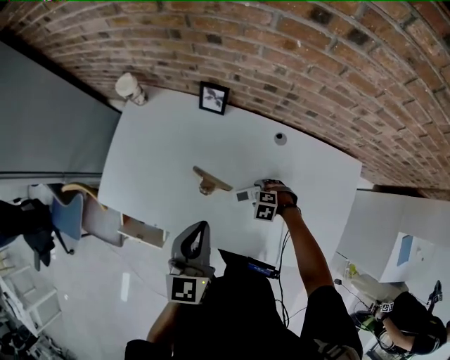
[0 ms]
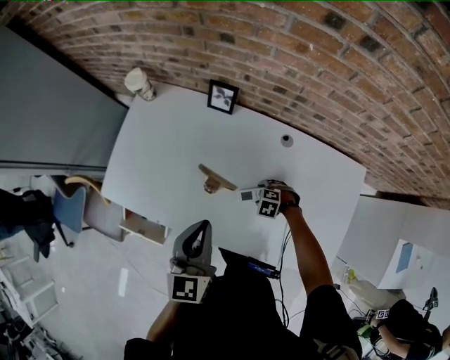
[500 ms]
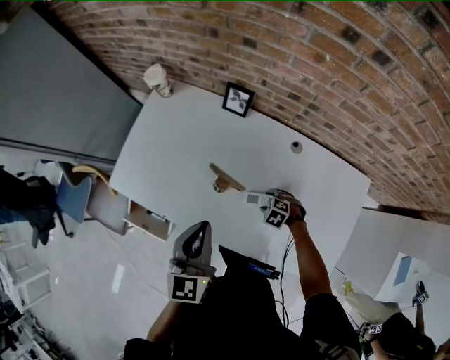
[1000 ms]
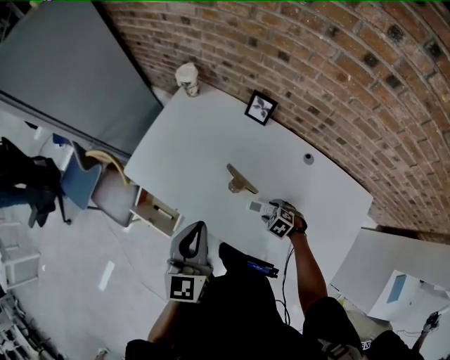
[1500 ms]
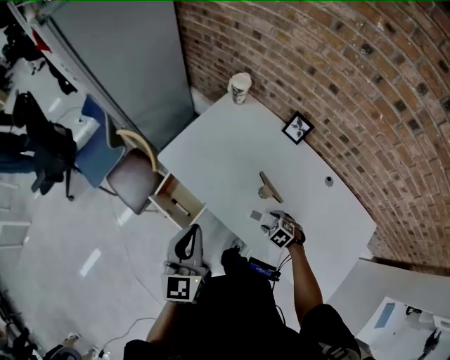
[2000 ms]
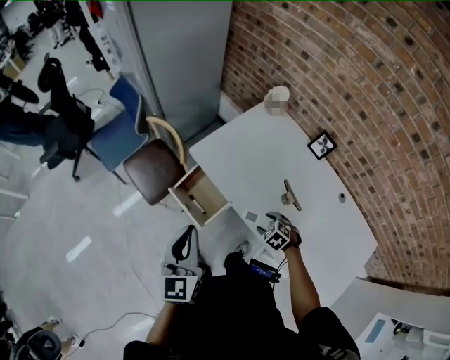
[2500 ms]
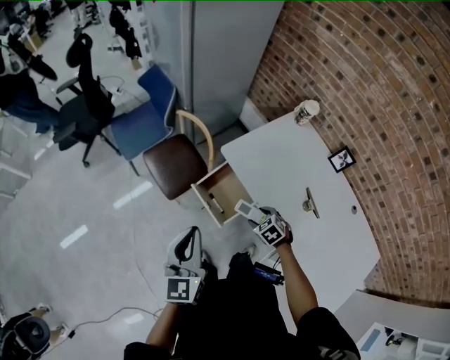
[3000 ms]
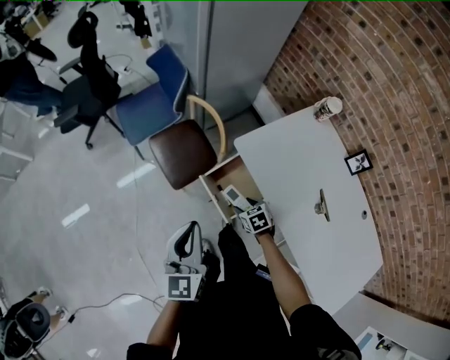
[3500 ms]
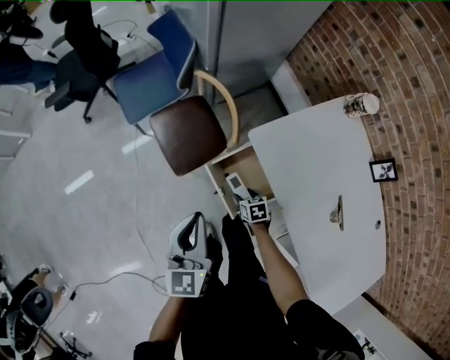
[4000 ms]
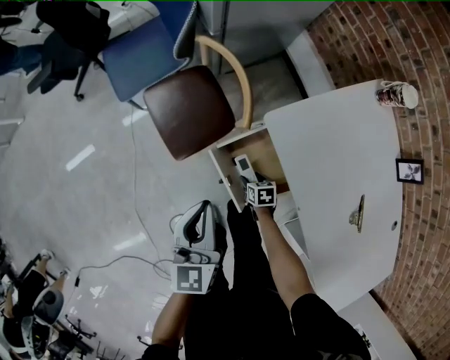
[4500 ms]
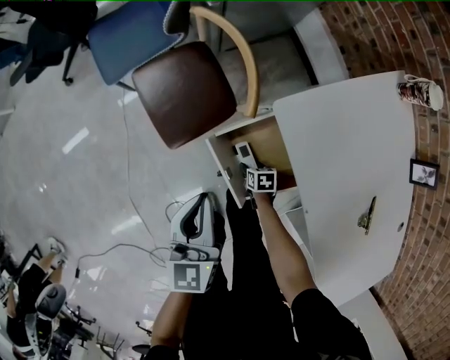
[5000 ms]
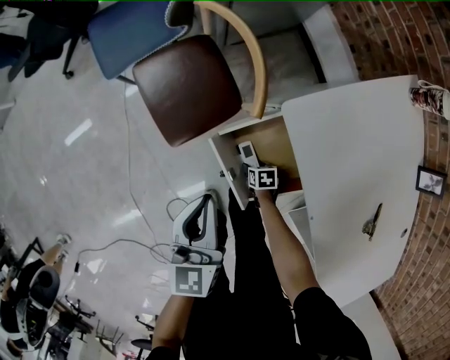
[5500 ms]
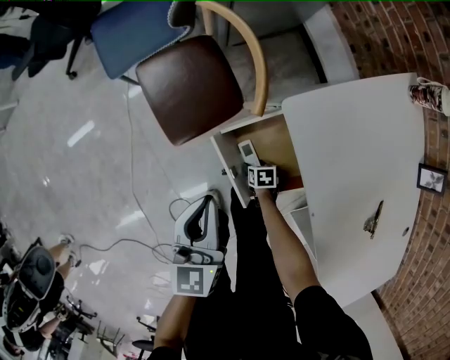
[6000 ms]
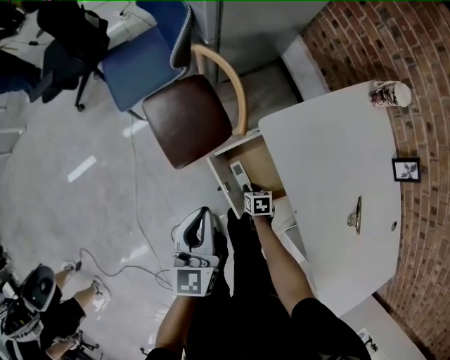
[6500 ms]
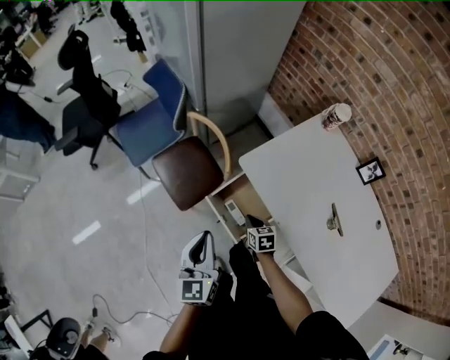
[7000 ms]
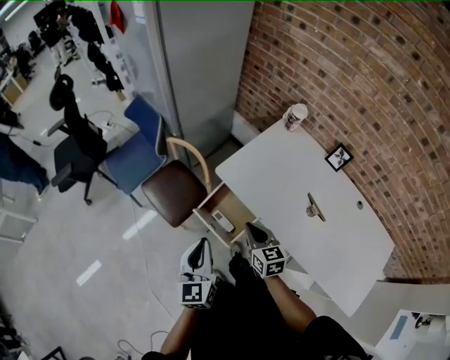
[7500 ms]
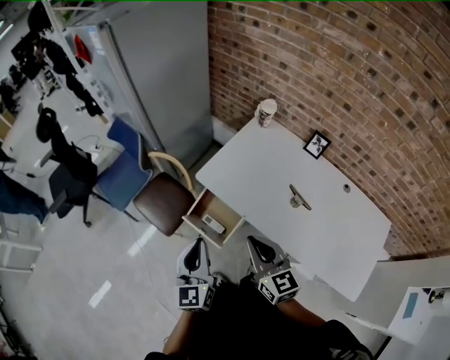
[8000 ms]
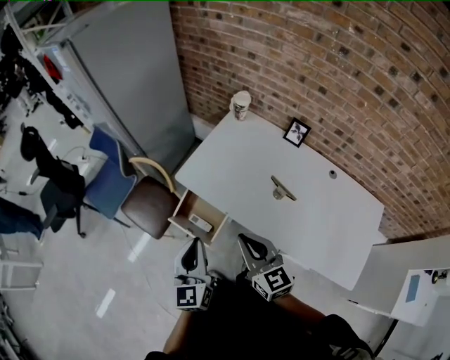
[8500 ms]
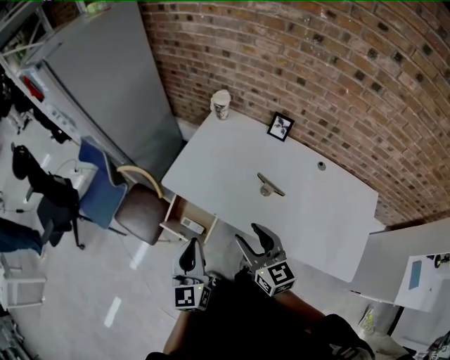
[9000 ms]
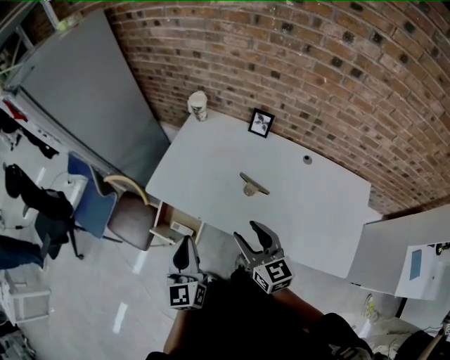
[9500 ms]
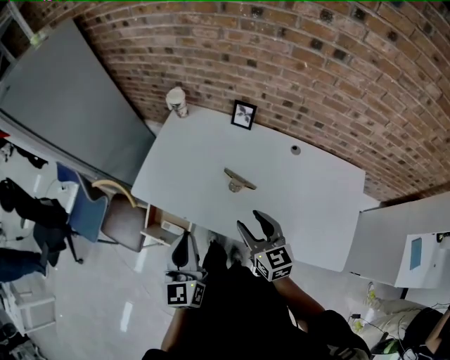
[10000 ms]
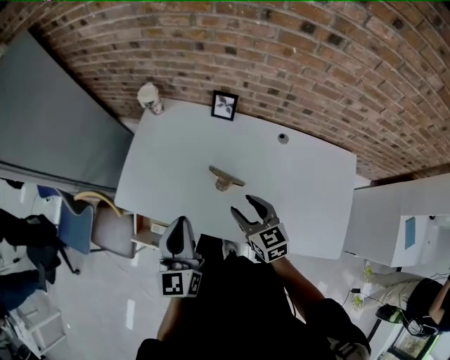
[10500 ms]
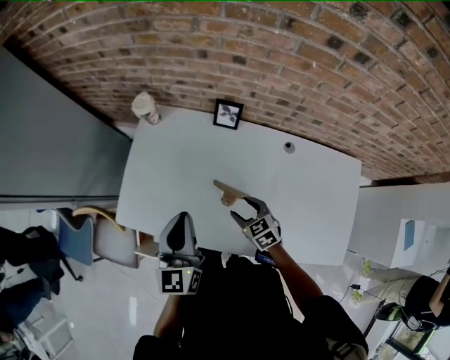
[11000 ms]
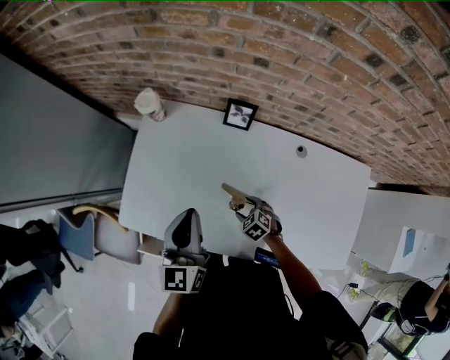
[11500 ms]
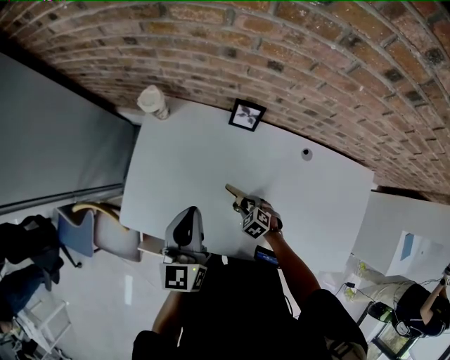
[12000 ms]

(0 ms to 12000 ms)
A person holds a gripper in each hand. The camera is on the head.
0 ms - 2000 ms: The left gripper moves approximately 25 cm, and changes its angle by some 30 degrees; the right gripper moves approximately 15 cm.
2000 ms - 4000 ms: The grippers both shift to the left, forward and downward by approximately 40 cm. The right gripper swivels some 20 degrees. Meanwhile the left gripper changes its angle by approximately 30 degrees.
4000 ms - 6000 ms: The grippers both shift downward by about 20 cm.
6000 ms - 8000 ms: The right gripper heads upward, covering some 70 cm, points its fingers about 60 degrees further upward, and closes. Meanwhile the left gripper heads upward, covering some 30 cm, and turns by approximately 30 degrees.
8000 ms - 10000 ms: The grippers both shift to the right by roughly 25 cm. The right gripper opens up.
10000 ms - 12000 ms: The left gripper goes some 30 cm forward, while the right gripper is displaced downward and forward by some 35 cm, and angles its fingers downward, by about 50 degrees.

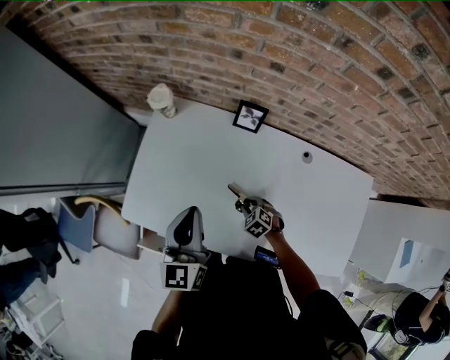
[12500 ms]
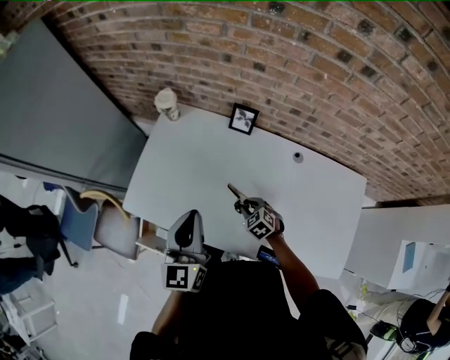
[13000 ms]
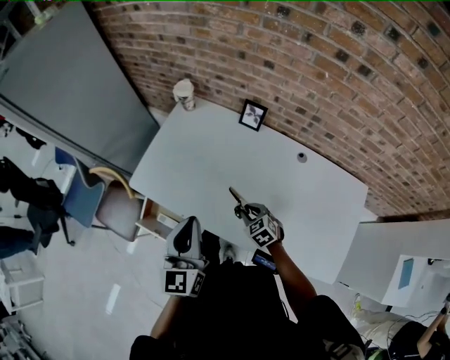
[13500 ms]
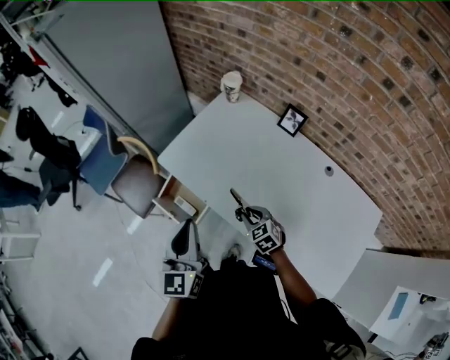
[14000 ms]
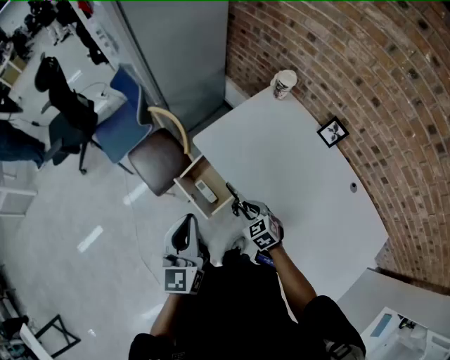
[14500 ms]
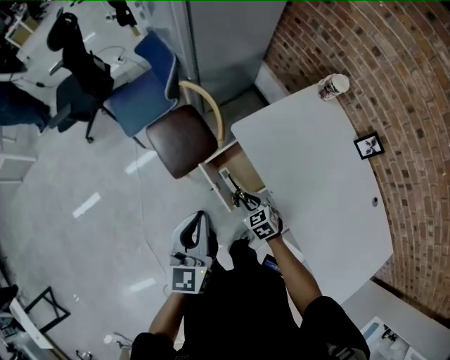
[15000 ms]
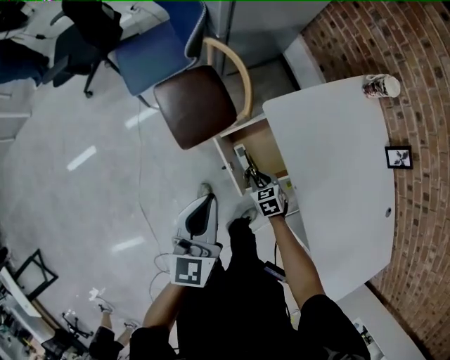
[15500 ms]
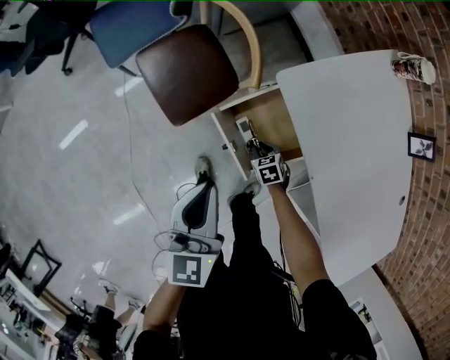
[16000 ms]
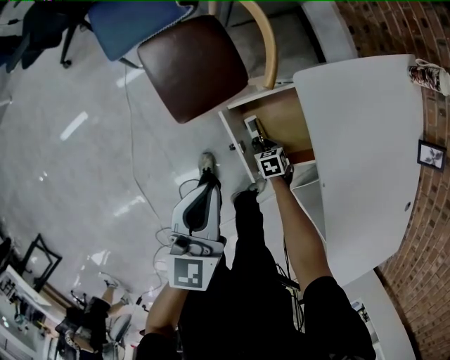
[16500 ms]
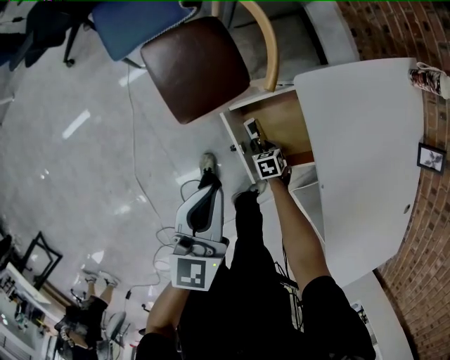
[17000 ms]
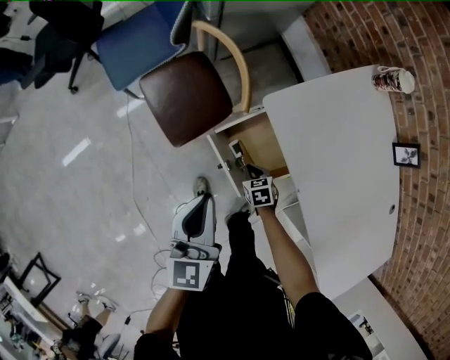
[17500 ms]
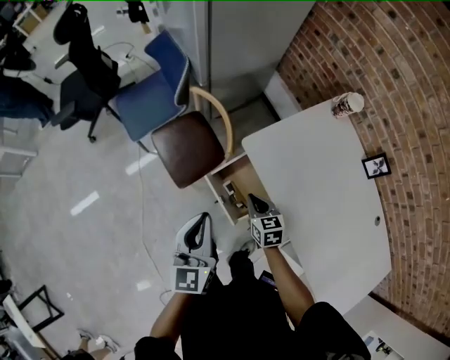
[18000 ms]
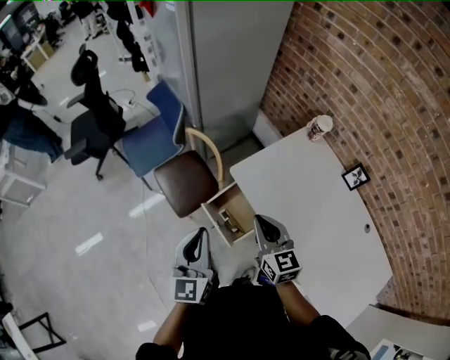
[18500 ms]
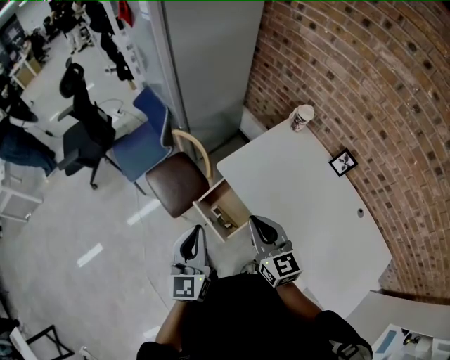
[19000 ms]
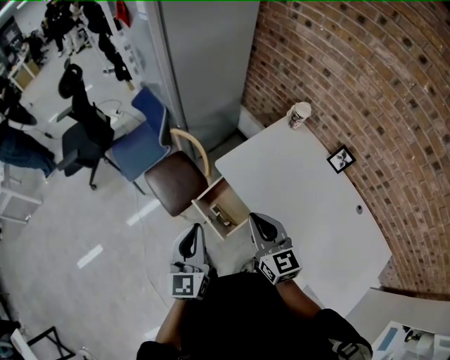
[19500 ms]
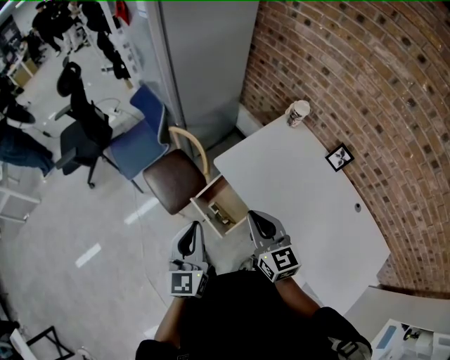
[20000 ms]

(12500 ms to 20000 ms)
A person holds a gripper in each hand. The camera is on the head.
12500 ms - 14500 ms: The right gripper moves roughly 30 cm, and changes its angle by some 30 degrees. The left gripper moves approximately 35 cm, and changes its angle by roughly 30 degrees.
14500 ms - 16500 ms: The left gripper moves downward, some 25 cm, while the right gripper travels downward by approximately 40 cm, and turns by about 30 degrees.
16500 ms - 18000 ms: The left gripper shifts approximately 15 cm upward; the right gripper moves upward, about 35 cm, and angles its fingers upward, by about 40 degrees.
18000 ms - 20000 ms: The left gripper goes about 10 cm upward and backward, while the right gripper is displaced upward by roughly 25 cm, and changes its angle by roughly 30 degrees.

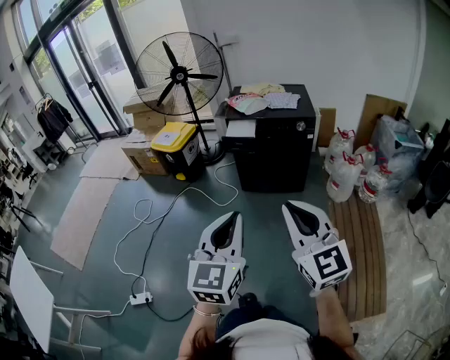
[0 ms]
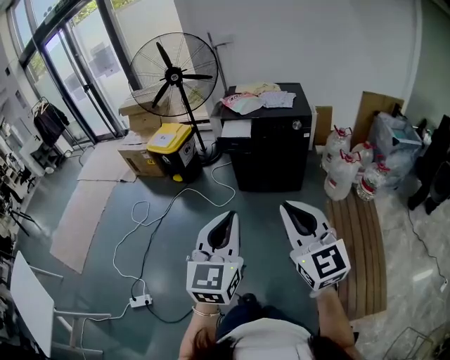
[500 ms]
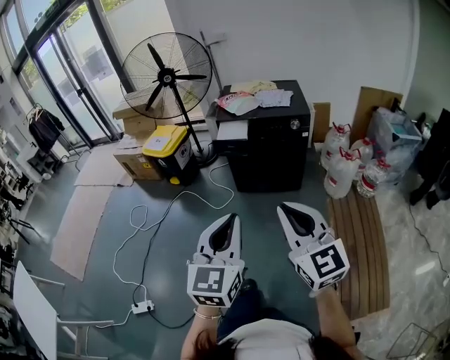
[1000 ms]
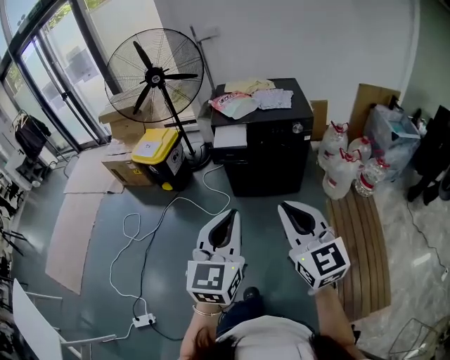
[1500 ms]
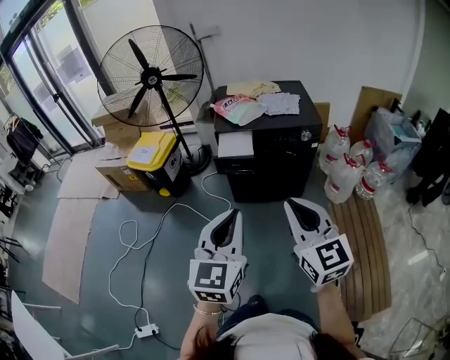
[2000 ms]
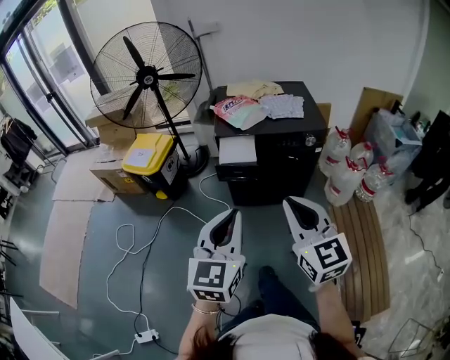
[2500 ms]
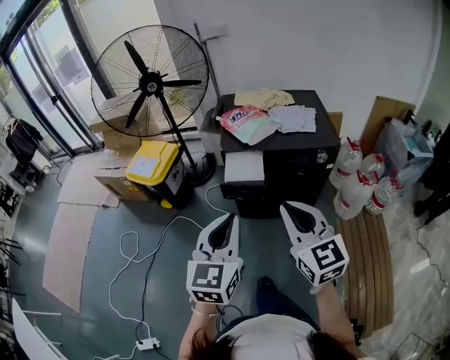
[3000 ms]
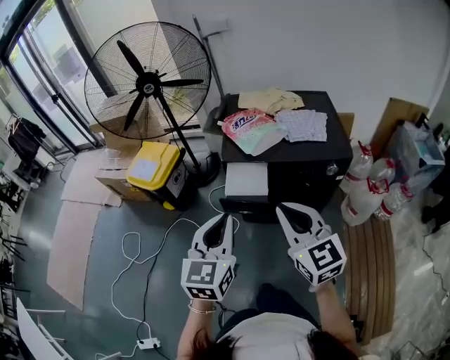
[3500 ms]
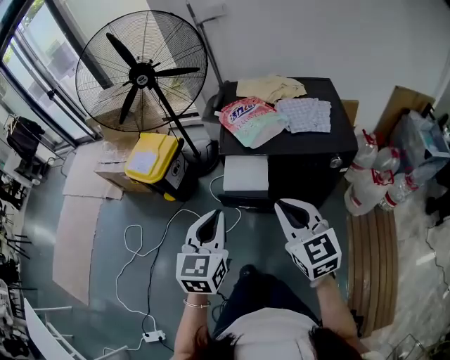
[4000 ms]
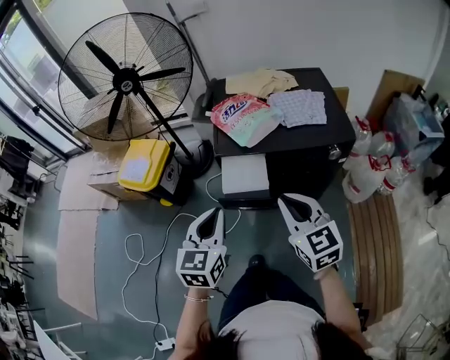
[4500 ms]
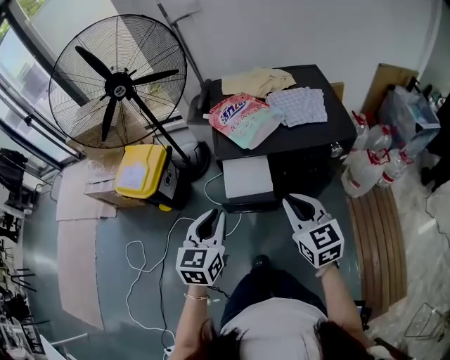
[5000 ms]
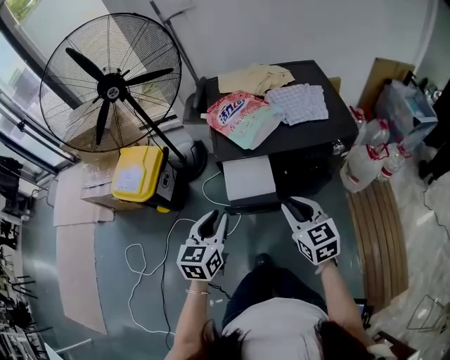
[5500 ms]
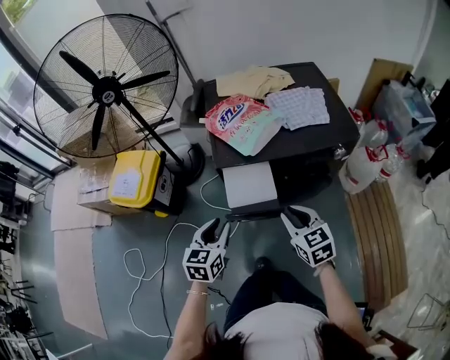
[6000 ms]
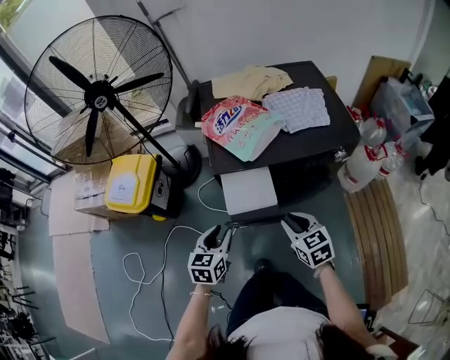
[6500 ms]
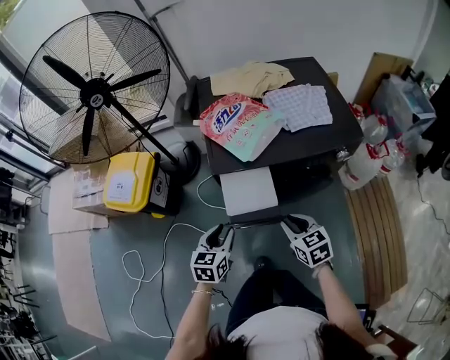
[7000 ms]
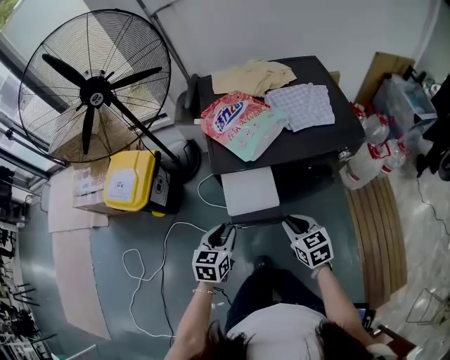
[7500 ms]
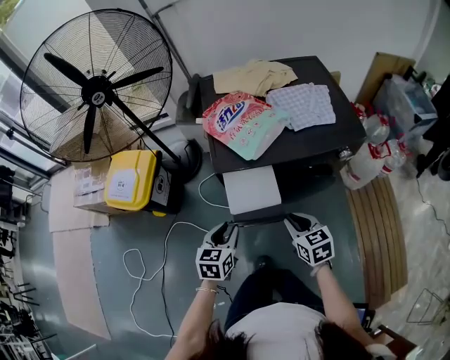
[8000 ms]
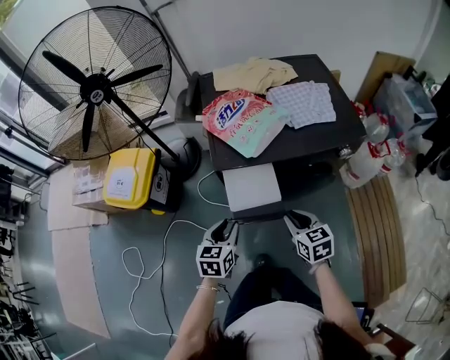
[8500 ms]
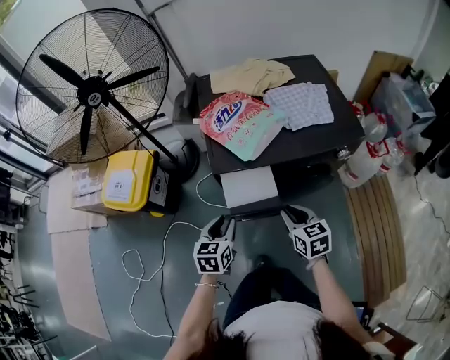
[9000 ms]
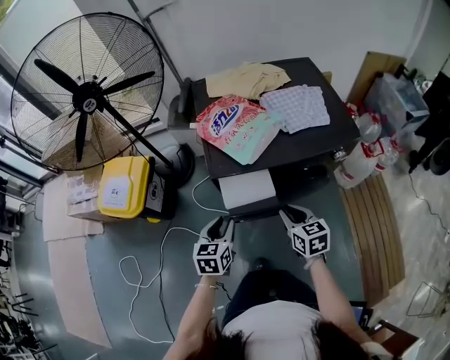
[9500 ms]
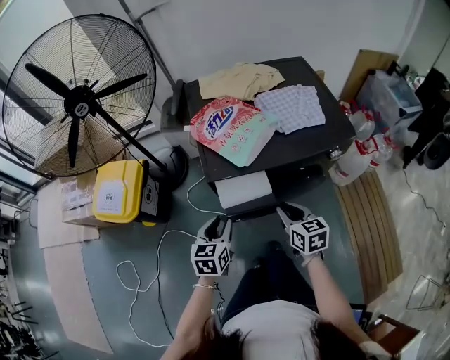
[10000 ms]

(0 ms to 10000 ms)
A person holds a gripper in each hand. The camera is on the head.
0 ms - 2000 ms: The two grippers go some 25 cm forward.
2000 ms - 4000 ms: Both grippers travel together forward, some 30 cm.
4000 ms - 6000 ms: The grippers both shift downward and forward by roughly 20 cm. The left gripper turns by some 20 degrees, and opens. Meanwhile the right gripper rotates some 20 degrees.
6000 ms - 8000 ms: Both grippers travel together downward, roughly 5 cm.
8000 ms - 10000 ms: The grippers both shift forward by about 5 cm.
